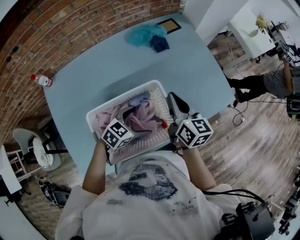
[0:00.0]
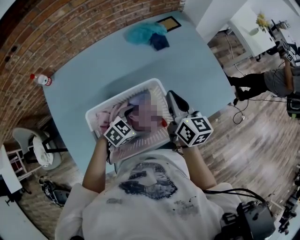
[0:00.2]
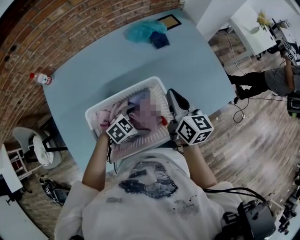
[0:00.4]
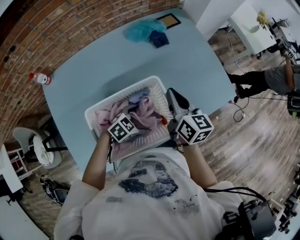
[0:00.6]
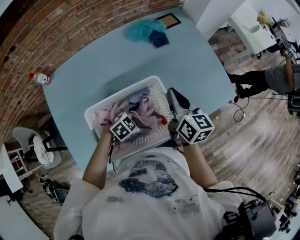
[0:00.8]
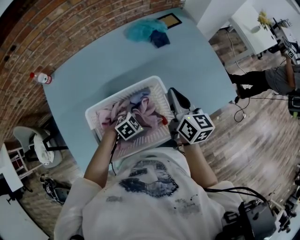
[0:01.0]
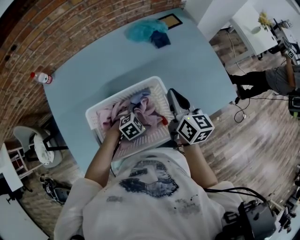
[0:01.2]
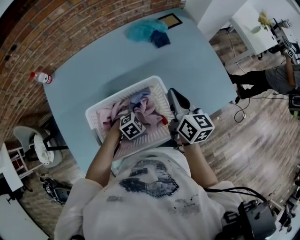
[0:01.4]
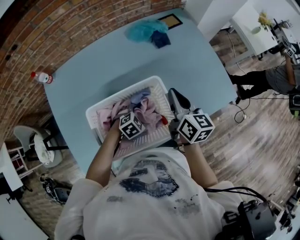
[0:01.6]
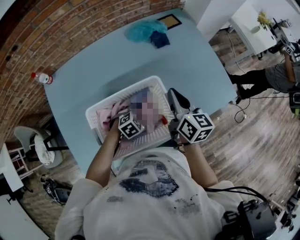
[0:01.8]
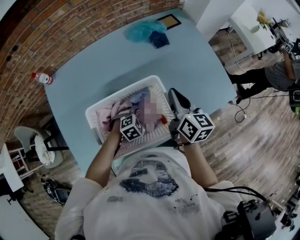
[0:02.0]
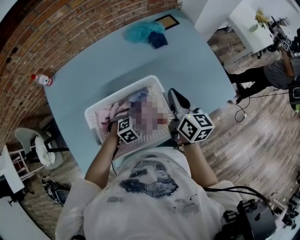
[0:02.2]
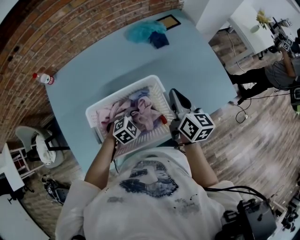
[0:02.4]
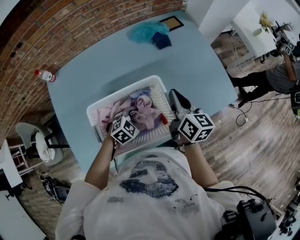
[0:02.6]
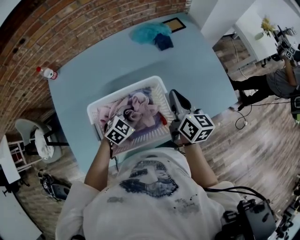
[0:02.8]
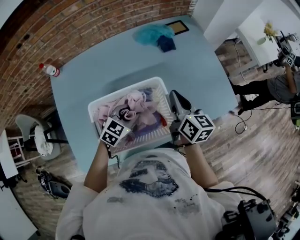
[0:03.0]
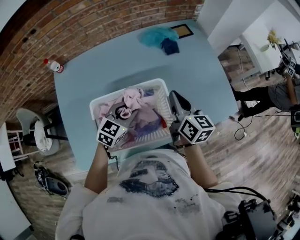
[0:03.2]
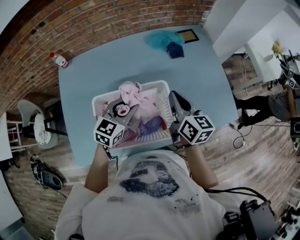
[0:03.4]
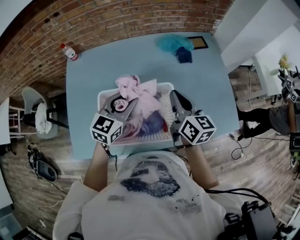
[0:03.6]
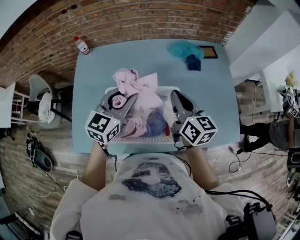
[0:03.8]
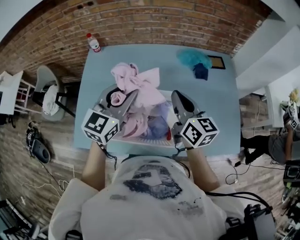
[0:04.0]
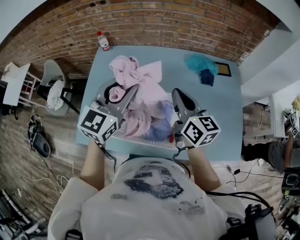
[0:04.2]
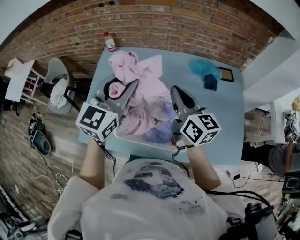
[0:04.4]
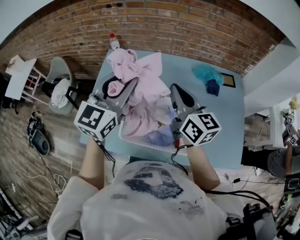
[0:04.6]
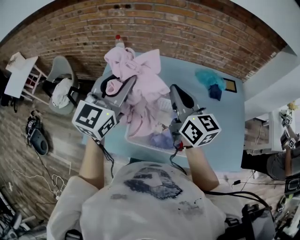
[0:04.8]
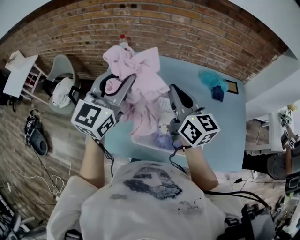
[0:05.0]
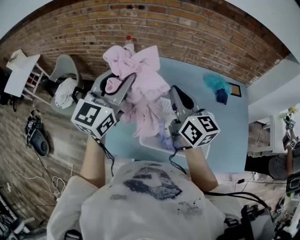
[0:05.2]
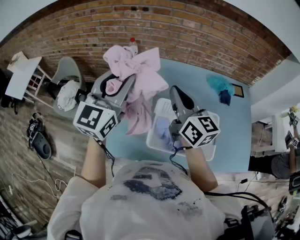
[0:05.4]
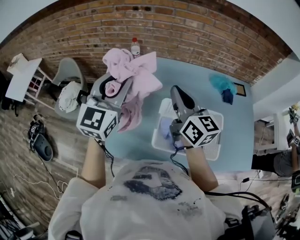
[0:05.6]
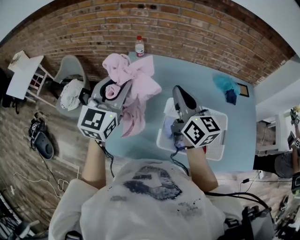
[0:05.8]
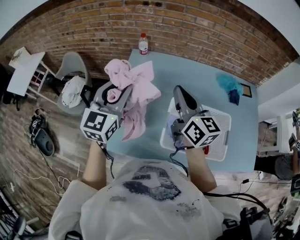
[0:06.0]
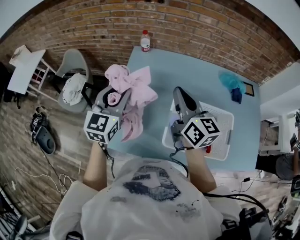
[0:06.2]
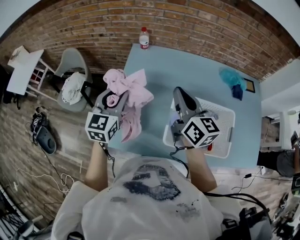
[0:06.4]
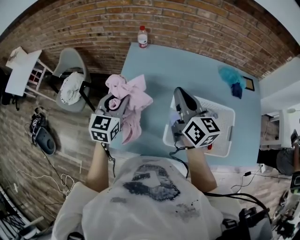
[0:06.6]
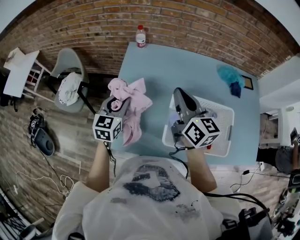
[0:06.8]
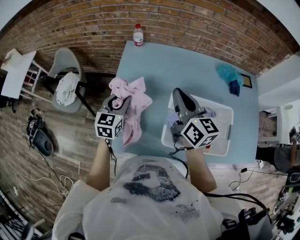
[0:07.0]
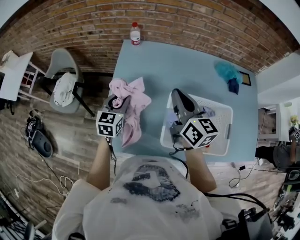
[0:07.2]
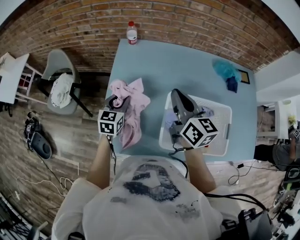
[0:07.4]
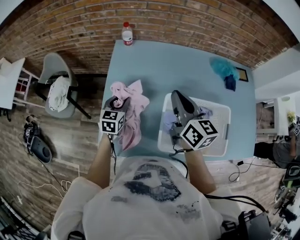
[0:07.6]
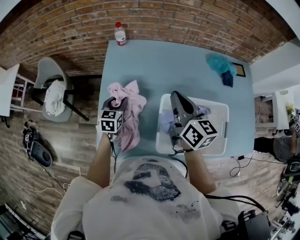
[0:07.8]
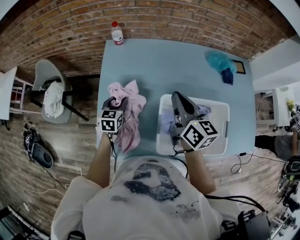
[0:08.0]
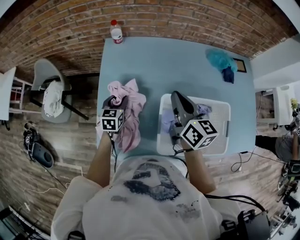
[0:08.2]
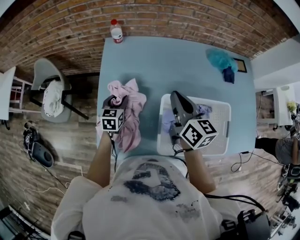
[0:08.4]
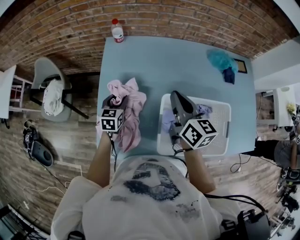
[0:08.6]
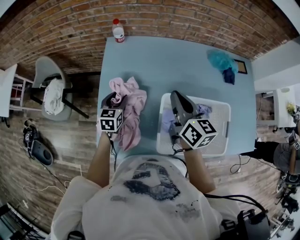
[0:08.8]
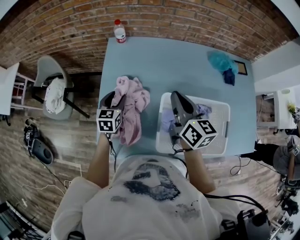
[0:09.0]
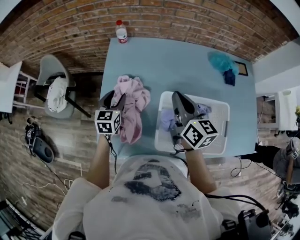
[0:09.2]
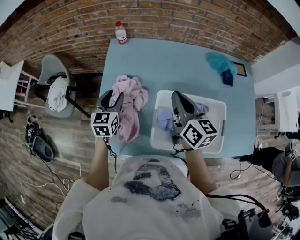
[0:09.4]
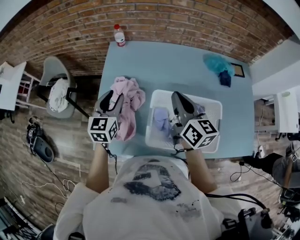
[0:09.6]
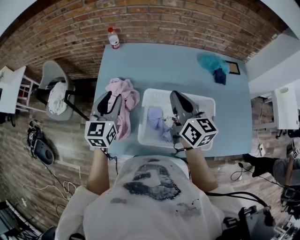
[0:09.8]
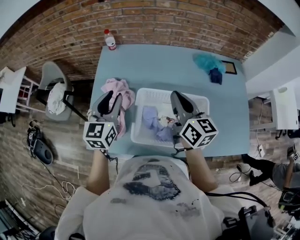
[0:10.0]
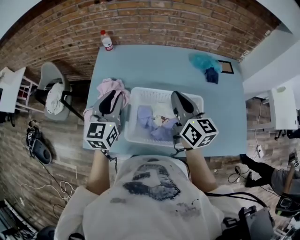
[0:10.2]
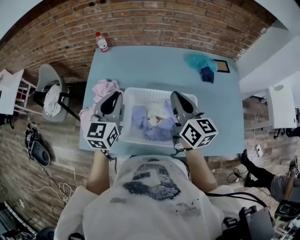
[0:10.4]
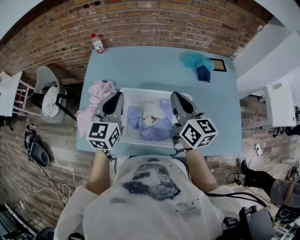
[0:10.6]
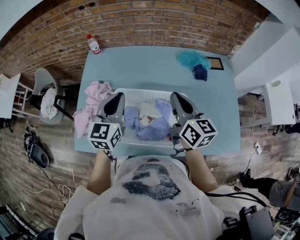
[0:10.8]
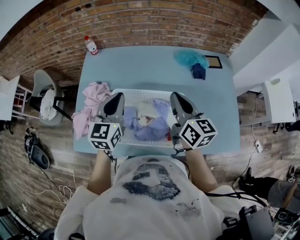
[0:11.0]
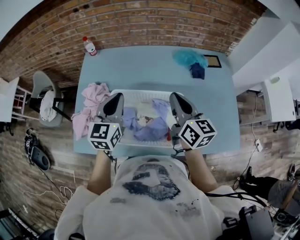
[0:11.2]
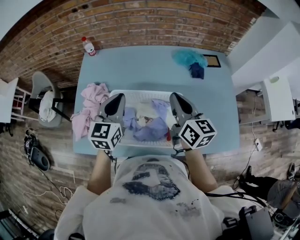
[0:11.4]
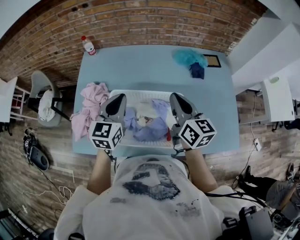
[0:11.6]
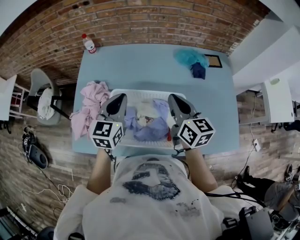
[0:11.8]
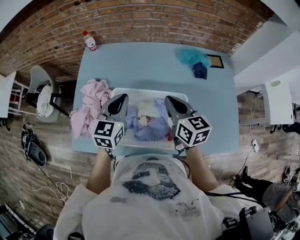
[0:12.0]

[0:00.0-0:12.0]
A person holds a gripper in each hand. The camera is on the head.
0:00.0 to 0:01.6: The left gripper moves downward, roughly 10 cm, and rotates about 30 degrees.
0:01.6 to 0:03.0: The left gripper shifts some 10 cm upward, rotates approximately 30 degrees, and closes its fingers.
0:03.0 to 0:04.4: The right gripper ends up roughly 20 cm from where it was, and turns by some 40 degrees, while the left gripper goes roughly 30 cm upward, and angles its fingers upward, by about 30 degrees.
0:04.4 to 0:06.0: The two grippers go some 25 cm to the left.
0:06.0 to 0:07.6: The left gripper shifts some 25 cm downward, and turns by roughly 30 degrees. The right gripper goes approximately 10 cm downward.
0:07.6 to 0:09.0: The grippers move only a little.
0:09.0 to 0:10.4: The left gripper moves upward, to the right and backward, about 30 cm, and turns by roughly 20 degrees. Meanwhile the right gripper shifts about 20 cm to the right and backward.
0:10.4 to 0:12.0: The right gripper goes approximately 5 cm downward. The left gripper travels to the right by approximately 10 cm.

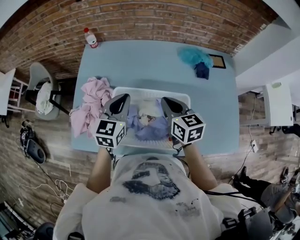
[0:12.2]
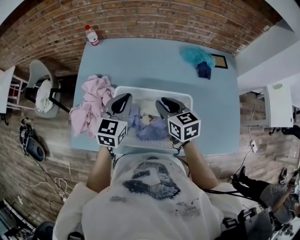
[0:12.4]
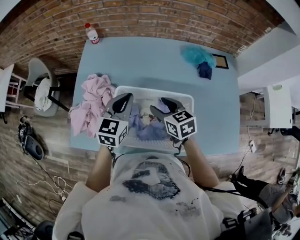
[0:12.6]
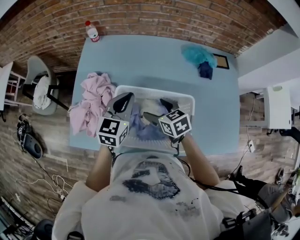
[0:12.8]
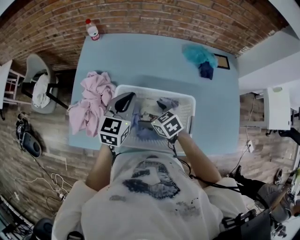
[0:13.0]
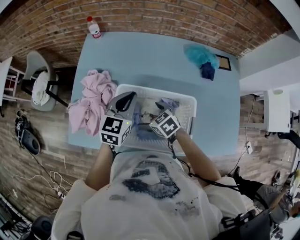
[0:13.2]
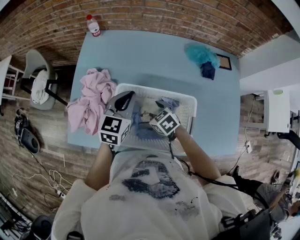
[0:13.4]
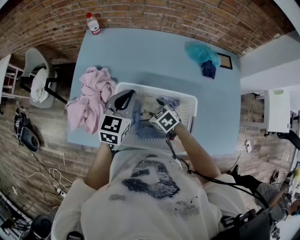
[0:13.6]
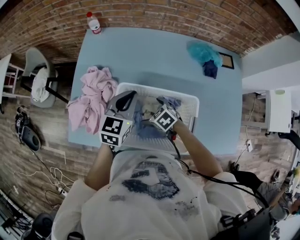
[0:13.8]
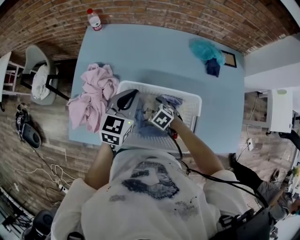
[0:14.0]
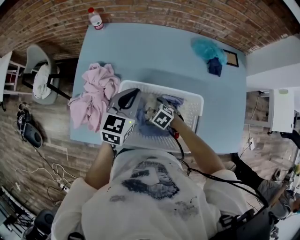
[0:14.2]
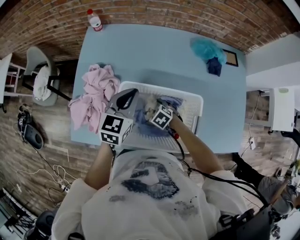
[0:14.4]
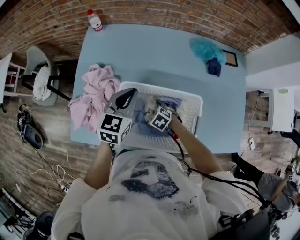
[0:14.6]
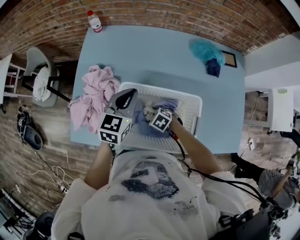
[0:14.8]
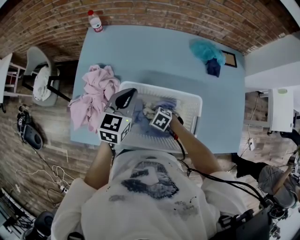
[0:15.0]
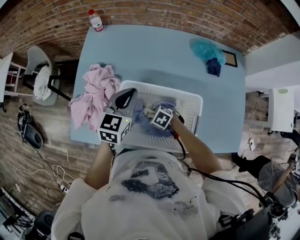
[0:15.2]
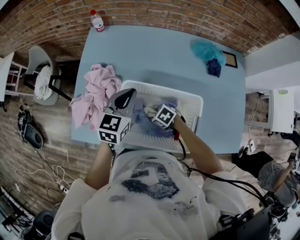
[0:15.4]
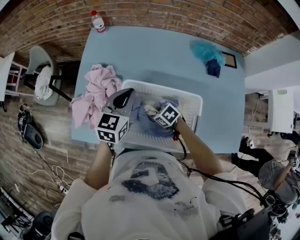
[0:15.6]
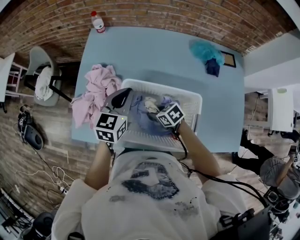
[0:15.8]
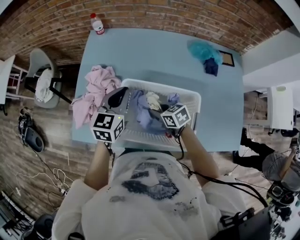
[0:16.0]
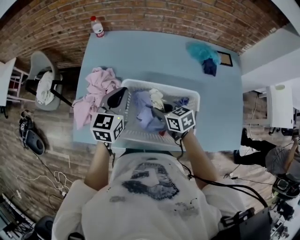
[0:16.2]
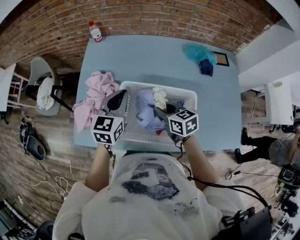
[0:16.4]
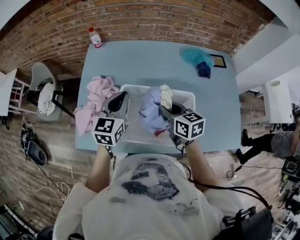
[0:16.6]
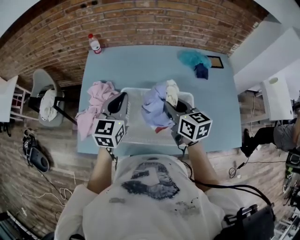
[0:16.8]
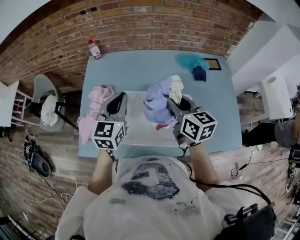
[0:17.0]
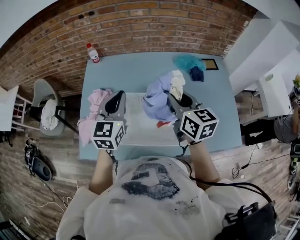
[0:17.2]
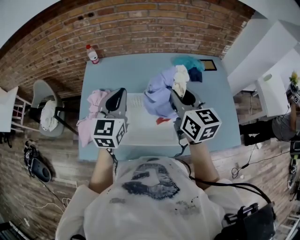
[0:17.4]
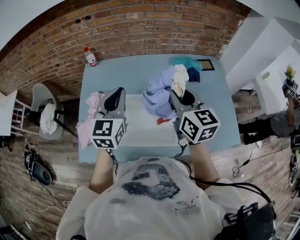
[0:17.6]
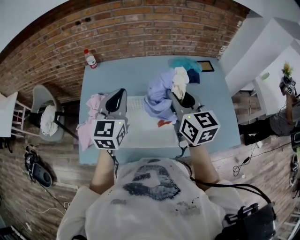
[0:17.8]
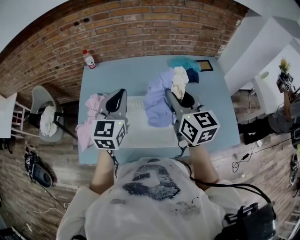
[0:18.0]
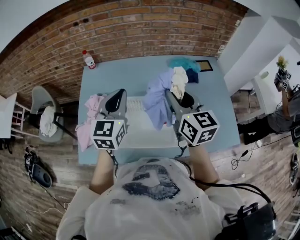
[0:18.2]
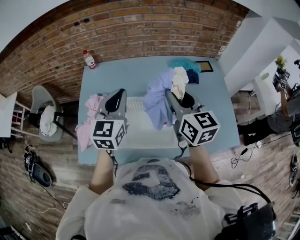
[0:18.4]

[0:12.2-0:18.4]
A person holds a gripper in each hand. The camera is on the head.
0:12.2 to 0:13.8: The right gripper heads downward and to the left, covering approximately 25 cm, angles its fingers downward, by approximately 30 degrees, and opens.
0:13.8 to 0:15.4: The right gripper heads downward, covering some 5 cm, and closes its fingers.
0:15.4 to 0:16.8: The left gripper is displaced upward by some 5 cm, while the right gripper travels upward by roughly 30 cm, and points its fingers approximately 40 degrees further upward.
0:16.8 to 0:18.4: Both grippers travel together upward, some 10 cm. The right gripper swivels roughly 20 degrees.

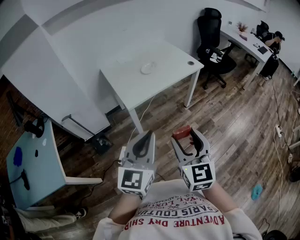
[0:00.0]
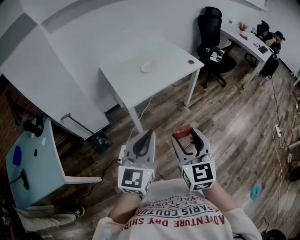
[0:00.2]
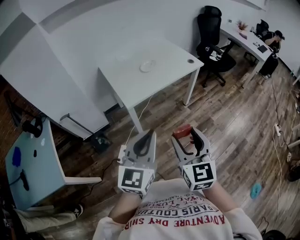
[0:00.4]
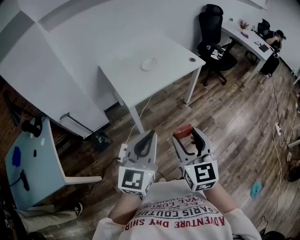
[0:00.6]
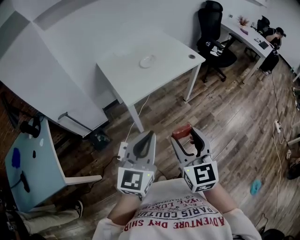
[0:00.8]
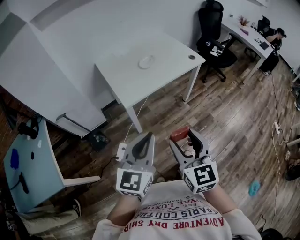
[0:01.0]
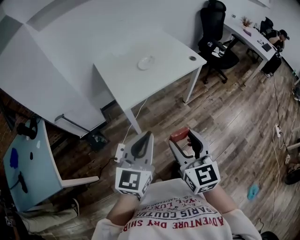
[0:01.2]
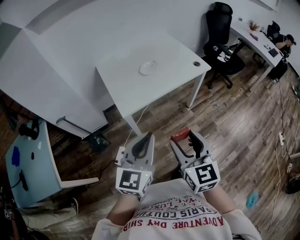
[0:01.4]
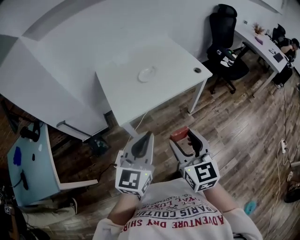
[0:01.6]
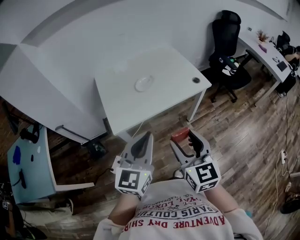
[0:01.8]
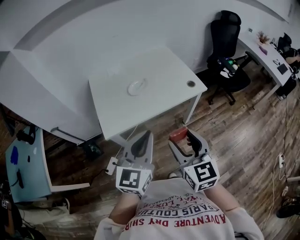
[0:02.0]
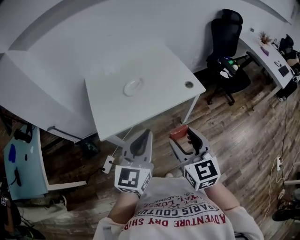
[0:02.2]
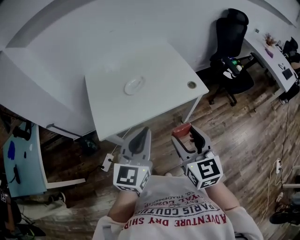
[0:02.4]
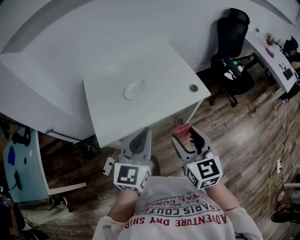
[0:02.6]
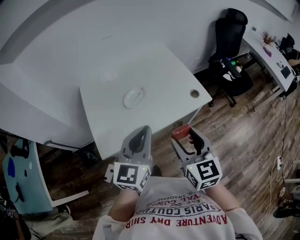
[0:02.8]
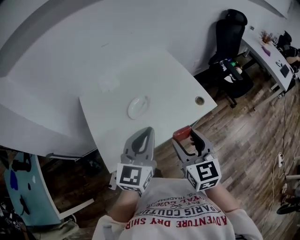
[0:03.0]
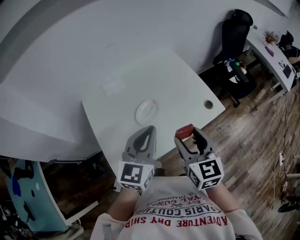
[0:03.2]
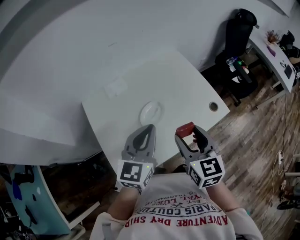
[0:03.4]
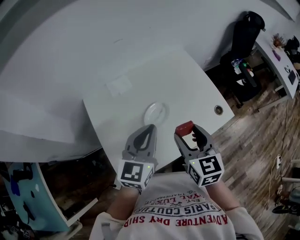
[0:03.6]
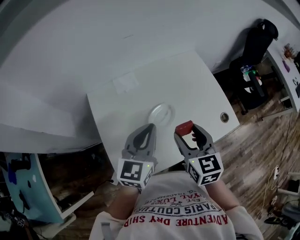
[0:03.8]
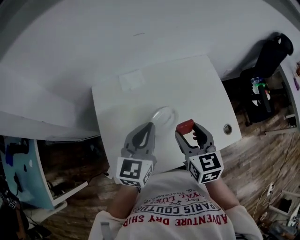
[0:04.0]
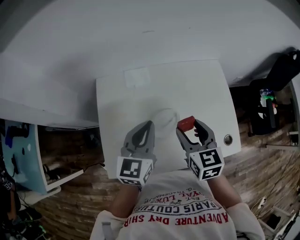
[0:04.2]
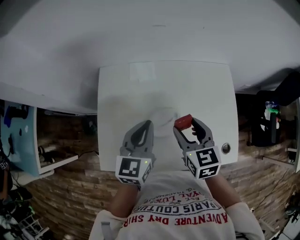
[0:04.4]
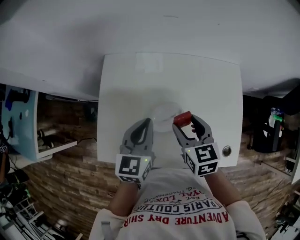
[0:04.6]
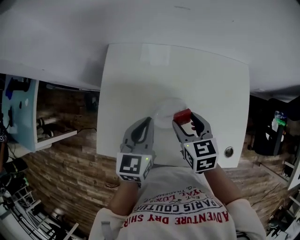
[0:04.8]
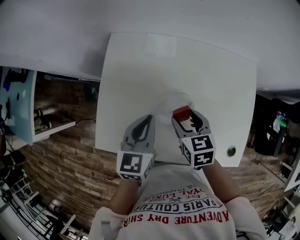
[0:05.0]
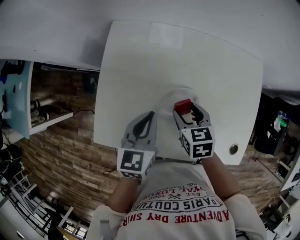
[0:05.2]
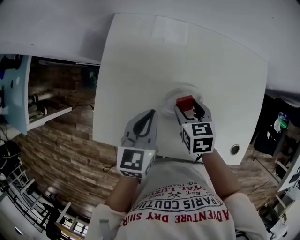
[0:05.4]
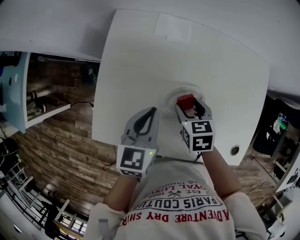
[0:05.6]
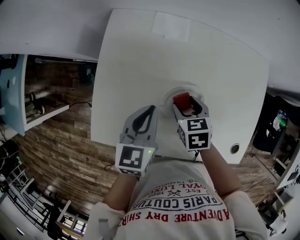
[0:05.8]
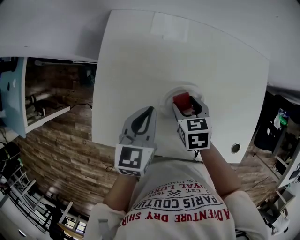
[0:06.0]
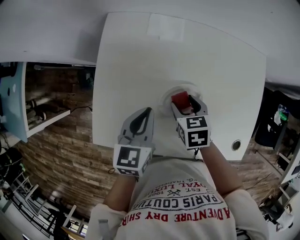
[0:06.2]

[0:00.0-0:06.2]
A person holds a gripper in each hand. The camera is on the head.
0:00.0 to 0:01.6: Both grippers move forward, approximately 20 cm.
0:01.6 to 0:03.2: The two grippers go approximately 40 cm forward.
0:03.2 to 0:04.6: The left gripper shifts by roughly 20 cm, and changes its angle by roughly 40 degrees. Meanwhile the right gripper ends up roughly 25 cm from where it was, and turns by approximately 40 degrees.
0:04.6 to 0:06.2: The left gripper is displaced downward and to the left by some 10 cm. Meanwhile the right gripper heads downward, covering approximately 15 cm, and changes its angle by about 20 degrees.
